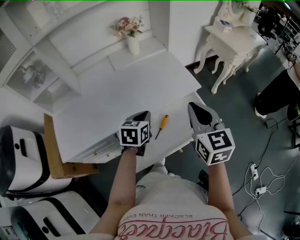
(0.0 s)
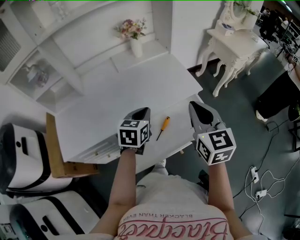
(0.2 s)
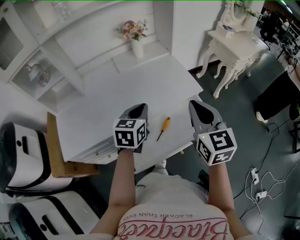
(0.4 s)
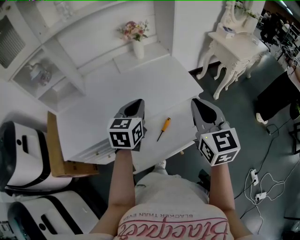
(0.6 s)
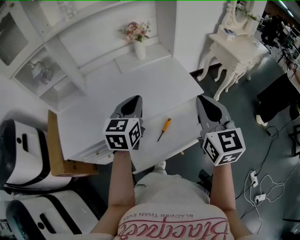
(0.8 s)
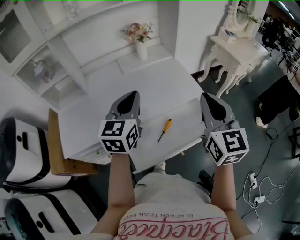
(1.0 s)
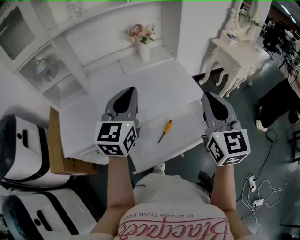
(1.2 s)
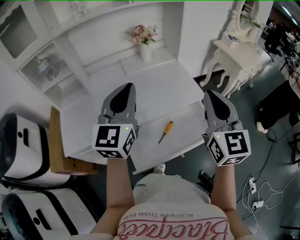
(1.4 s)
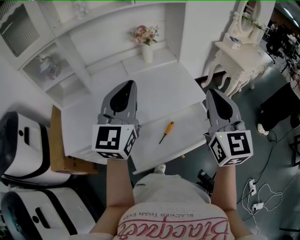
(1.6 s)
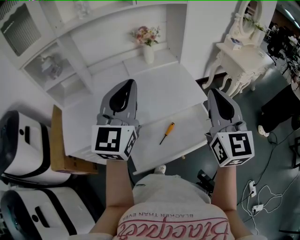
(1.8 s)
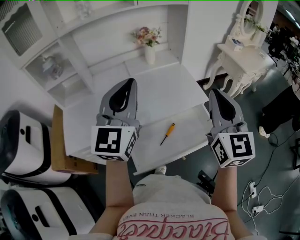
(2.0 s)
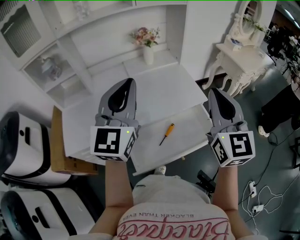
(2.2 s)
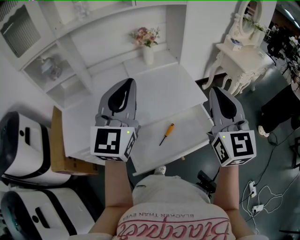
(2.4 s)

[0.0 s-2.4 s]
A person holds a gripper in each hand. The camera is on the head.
0.0 to 1.2 s: The left gripper goes some 20 cm upward, and tips its fingers upward by some 30 degrees. The right gripper goes about 10 cm upward.
1.2 to 2.4 s: The left gripper goes roughly 5 cm upward.

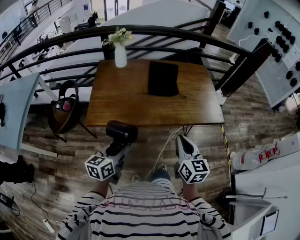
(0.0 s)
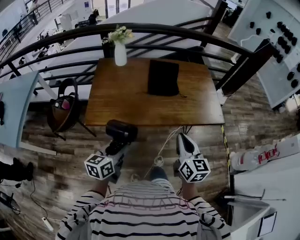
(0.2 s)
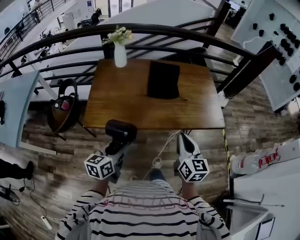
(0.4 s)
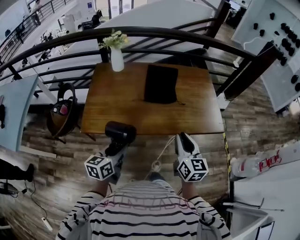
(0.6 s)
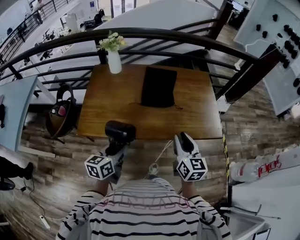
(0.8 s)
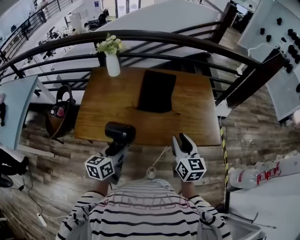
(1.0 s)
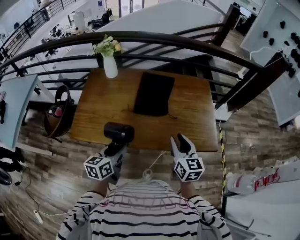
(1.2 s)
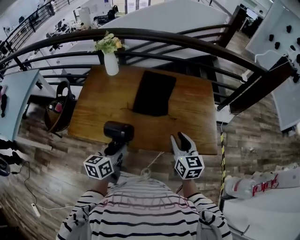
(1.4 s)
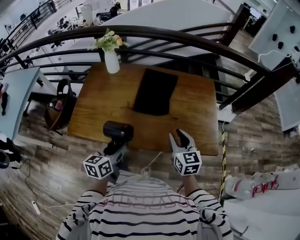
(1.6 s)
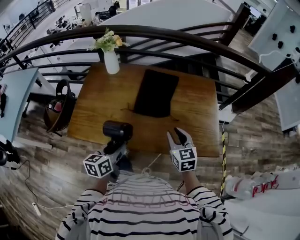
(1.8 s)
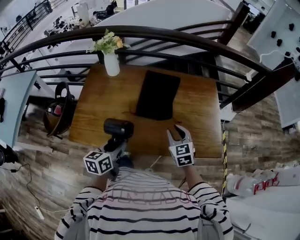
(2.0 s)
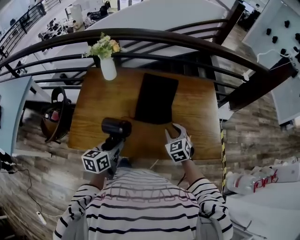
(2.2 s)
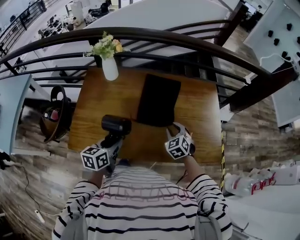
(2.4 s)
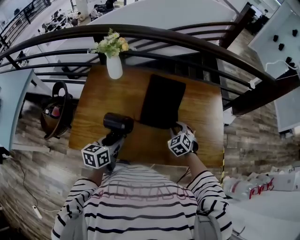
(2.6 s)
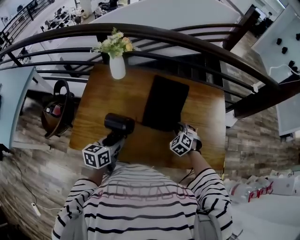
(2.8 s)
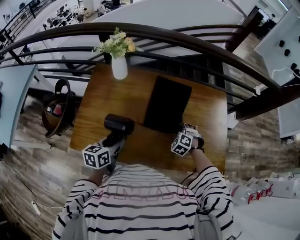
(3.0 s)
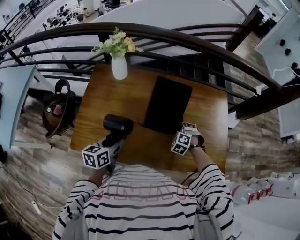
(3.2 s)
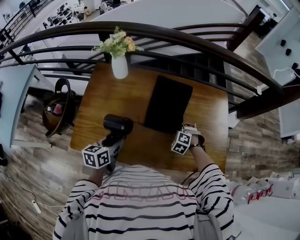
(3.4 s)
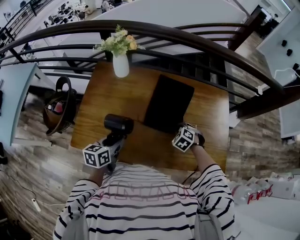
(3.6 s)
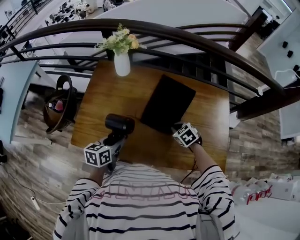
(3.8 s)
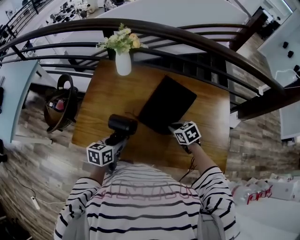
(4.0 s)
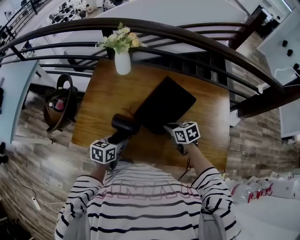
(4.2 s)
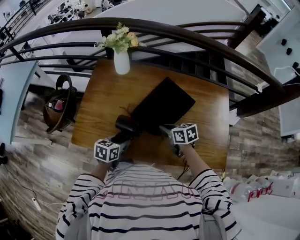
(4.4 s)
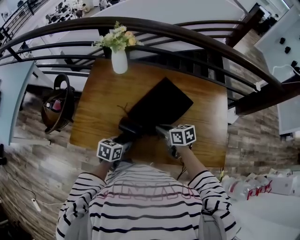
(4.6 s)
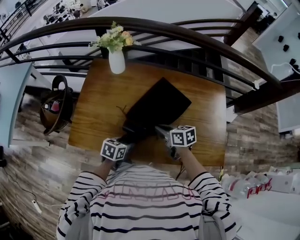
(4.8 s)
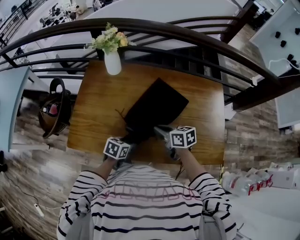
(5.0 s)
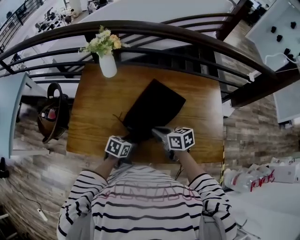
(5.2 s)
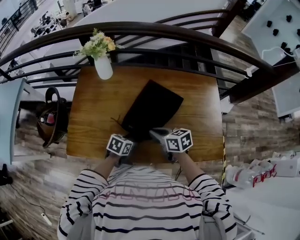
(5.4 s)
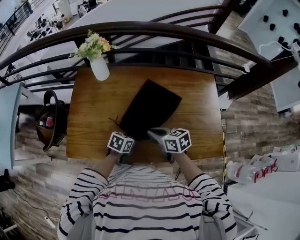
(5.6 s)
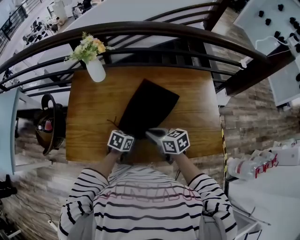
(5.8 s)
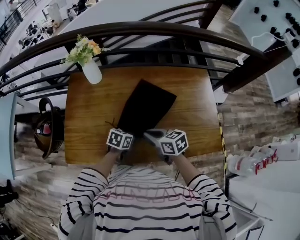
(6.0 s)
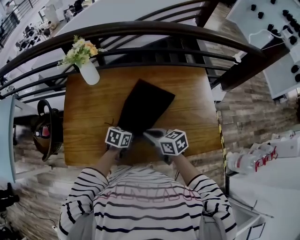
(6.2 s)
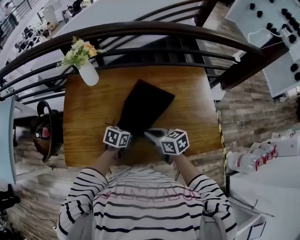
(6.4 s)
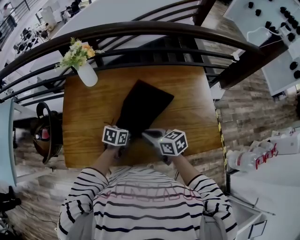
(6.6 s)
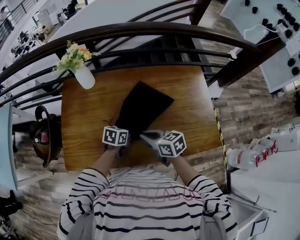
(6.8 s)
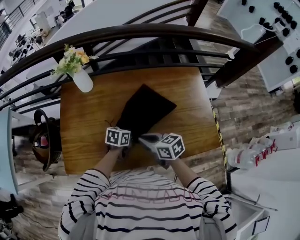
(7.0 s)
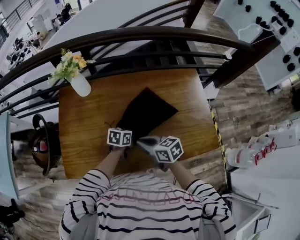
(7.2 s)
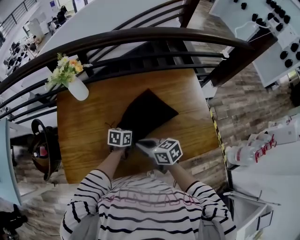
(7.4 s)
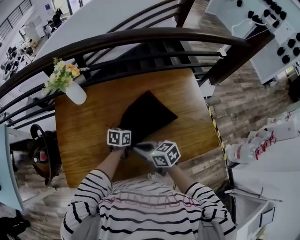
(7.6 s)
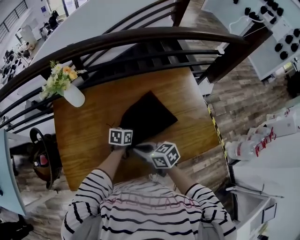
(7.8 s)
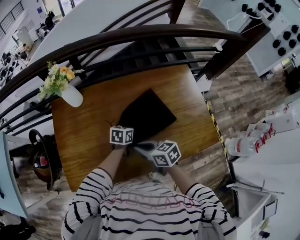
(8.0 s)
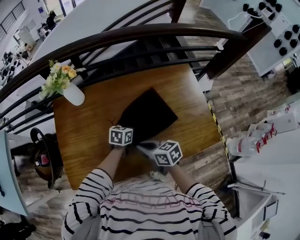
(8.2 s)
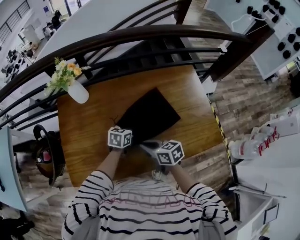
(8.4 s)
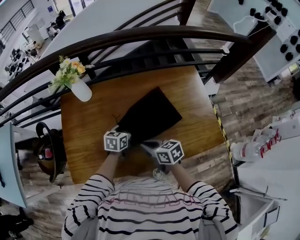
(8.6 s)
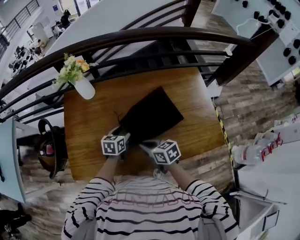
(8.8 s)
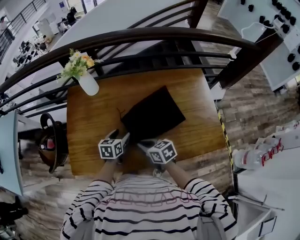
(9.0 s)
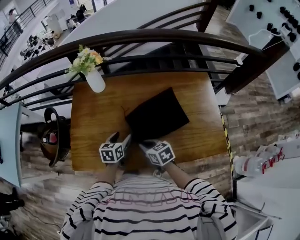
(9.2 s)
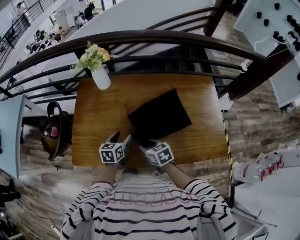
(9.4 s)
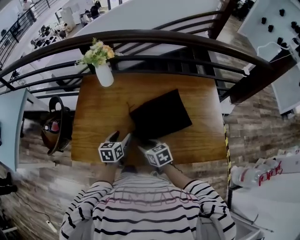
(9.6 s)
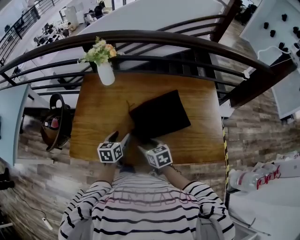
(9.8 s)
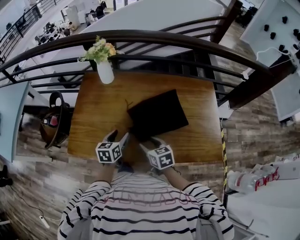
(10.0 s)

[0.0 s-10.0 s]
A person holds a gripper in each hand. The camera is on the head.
0.0 to 1.4 s: The two grippers go some 30 cm forward and to the right. The right gripper opens its fingers.
1.4 to 2.8 s: The left gripper is displaced forward and to the left by roughly 20 cm. Meanwhile the right gripper moves forward and downward, some 25 cm, and twists roughly 50 degrees counterclockwise, seen from behind.
2.8 to 4.2 s: The left gripper moves downward, approximately 5 cm. Meanwhile the right gripper shifts by approximately 10 cm, changes its angle by about 60 degrees, and closes its fingers.
4.2 to 5.8 s: The left gripper moves to the right and downward, some 15 cm, and swivels some 30 degrees. The right gripper is displaced upward by some 5 cm.
5.8 to 7.2 s: The left gripper shifts about 10 cm forward.
7.2 to 8.6 s: The left gripper moves about 5 cm, and opens up.
8.6 to 10.0 s: The right gripper is displaced backward by roughly 5 cm, and opens its fingers. The left gripper travels to the left and backward by approximately 15 cm, and changes its angle by about 30 degrees.

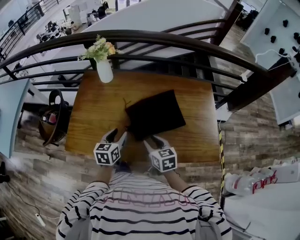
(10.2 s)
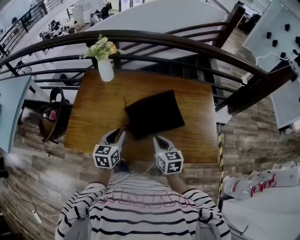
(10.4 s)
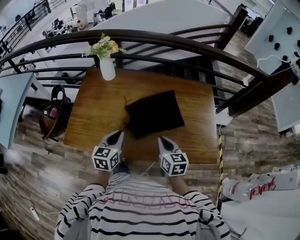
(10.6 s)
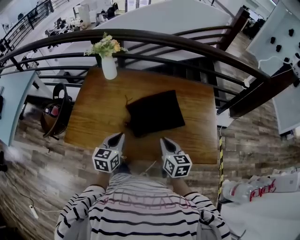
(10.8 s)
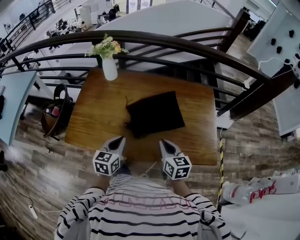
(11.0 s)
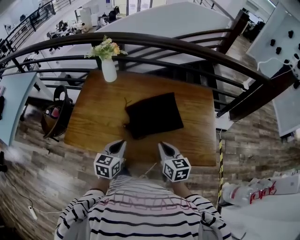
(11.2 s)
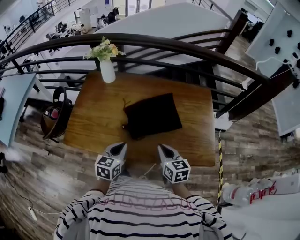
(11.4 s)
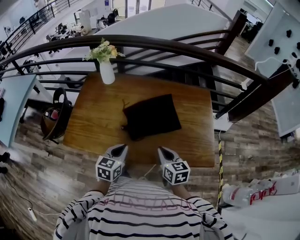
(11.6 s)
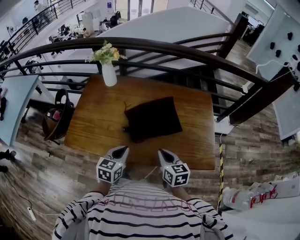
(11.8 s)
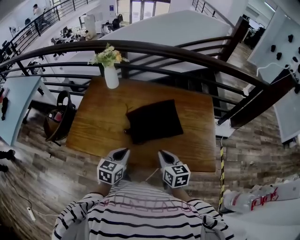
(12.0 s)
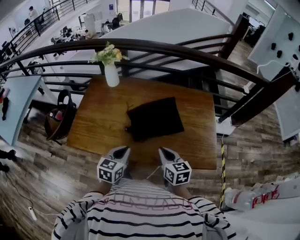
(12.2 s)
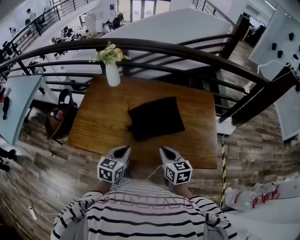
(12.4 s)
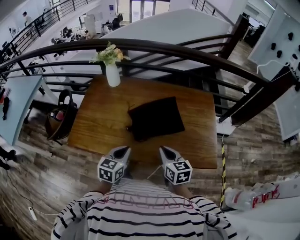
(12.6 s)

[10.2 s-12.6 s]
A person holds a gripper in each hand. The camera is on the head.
10.2 to 11.4 s: The right gripper shifts approximately 10 cm to the right and backward, and closes, while the left gripper moves backward and to the right, roughly 10 cm, and closes up.
11.4 to 12.6 s: The grippers make only small movements.

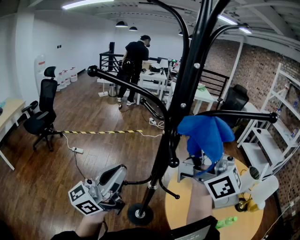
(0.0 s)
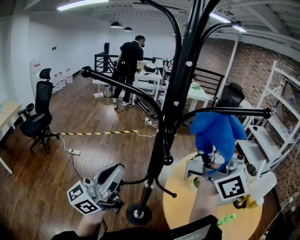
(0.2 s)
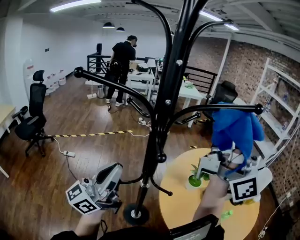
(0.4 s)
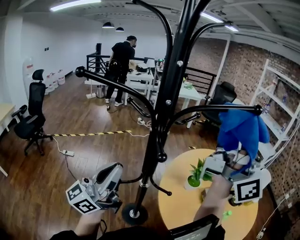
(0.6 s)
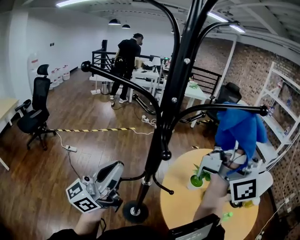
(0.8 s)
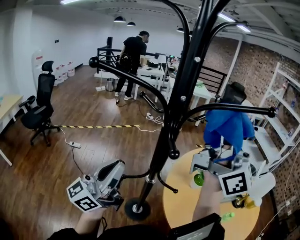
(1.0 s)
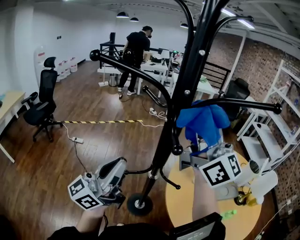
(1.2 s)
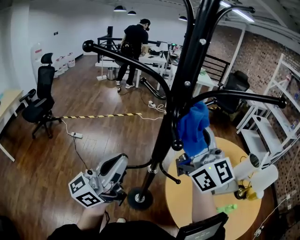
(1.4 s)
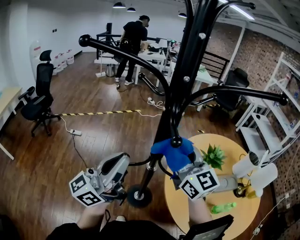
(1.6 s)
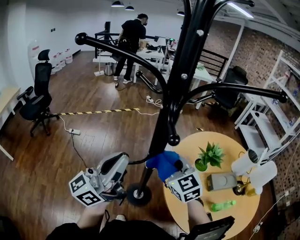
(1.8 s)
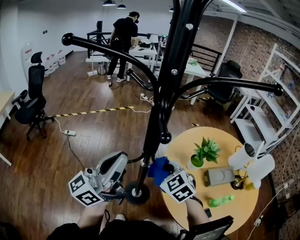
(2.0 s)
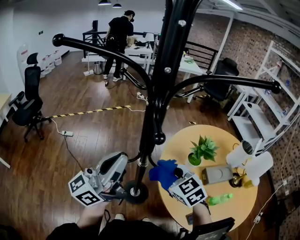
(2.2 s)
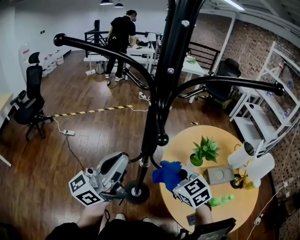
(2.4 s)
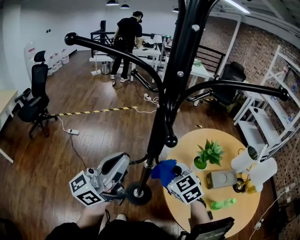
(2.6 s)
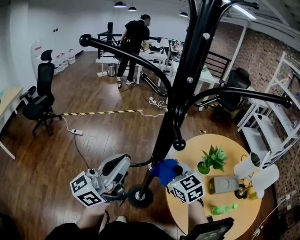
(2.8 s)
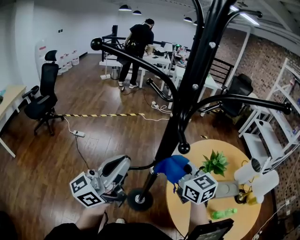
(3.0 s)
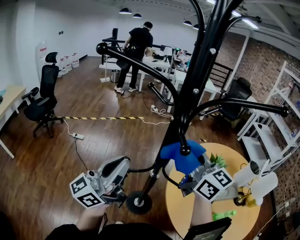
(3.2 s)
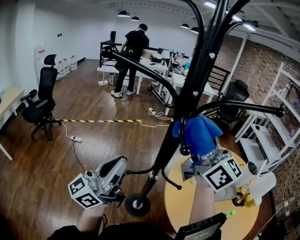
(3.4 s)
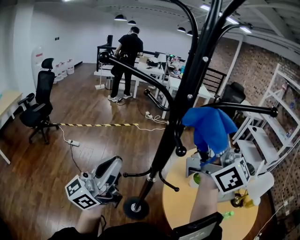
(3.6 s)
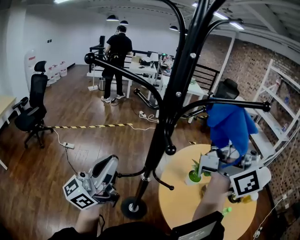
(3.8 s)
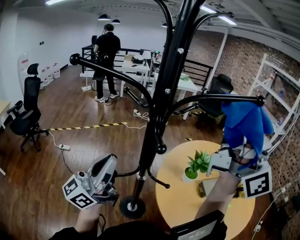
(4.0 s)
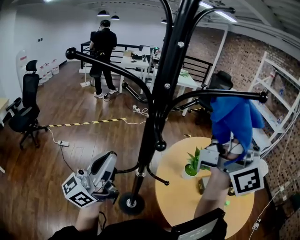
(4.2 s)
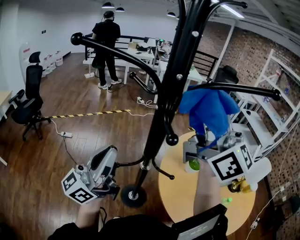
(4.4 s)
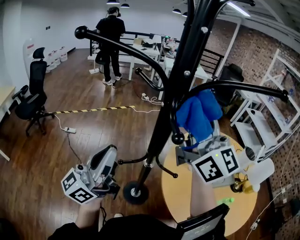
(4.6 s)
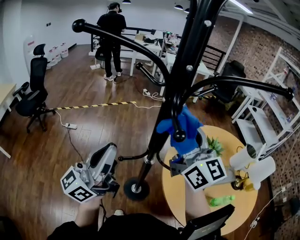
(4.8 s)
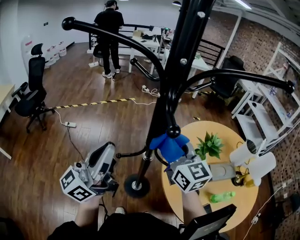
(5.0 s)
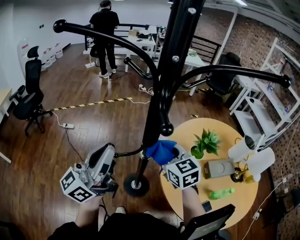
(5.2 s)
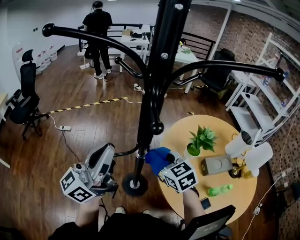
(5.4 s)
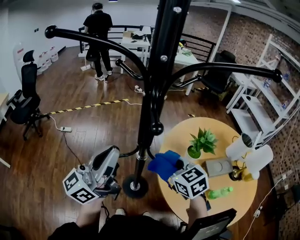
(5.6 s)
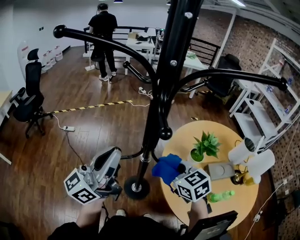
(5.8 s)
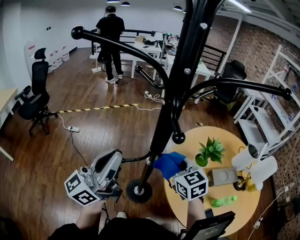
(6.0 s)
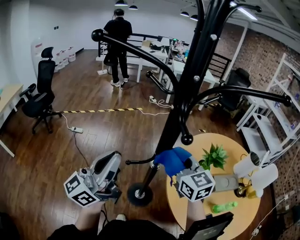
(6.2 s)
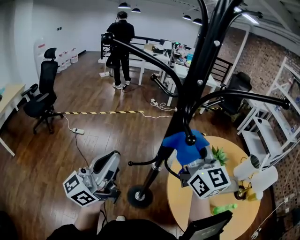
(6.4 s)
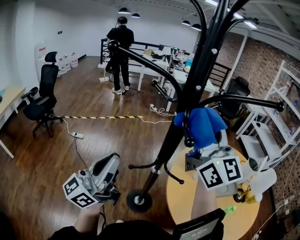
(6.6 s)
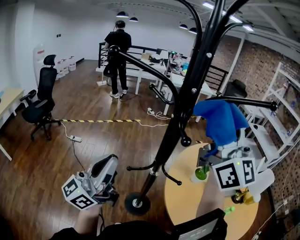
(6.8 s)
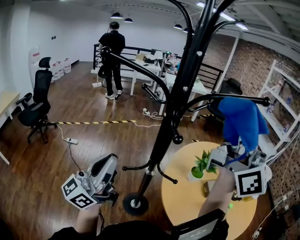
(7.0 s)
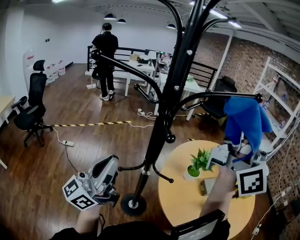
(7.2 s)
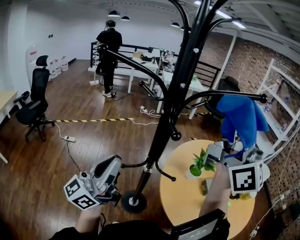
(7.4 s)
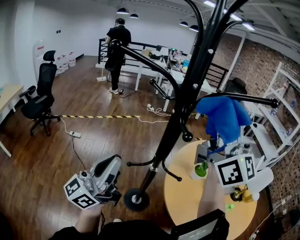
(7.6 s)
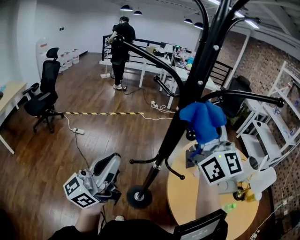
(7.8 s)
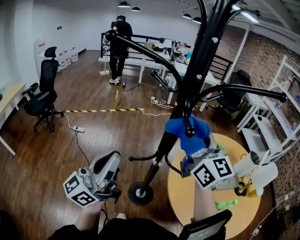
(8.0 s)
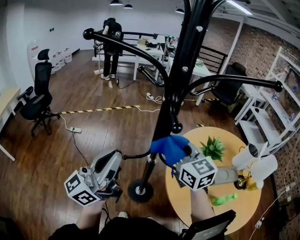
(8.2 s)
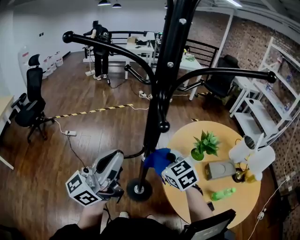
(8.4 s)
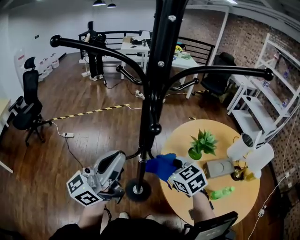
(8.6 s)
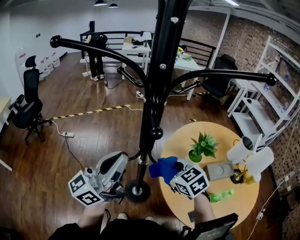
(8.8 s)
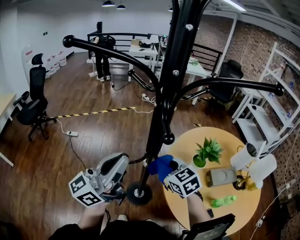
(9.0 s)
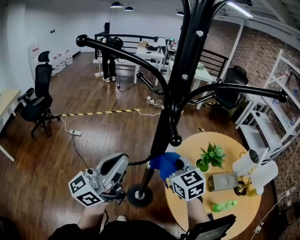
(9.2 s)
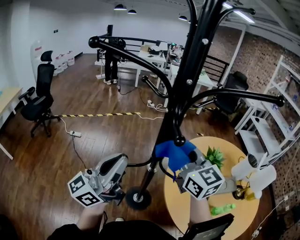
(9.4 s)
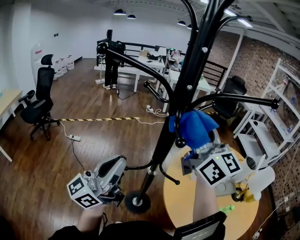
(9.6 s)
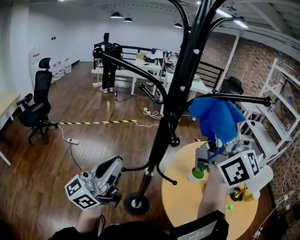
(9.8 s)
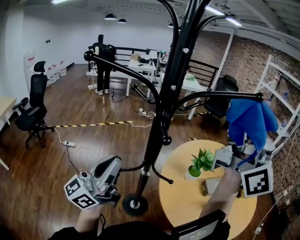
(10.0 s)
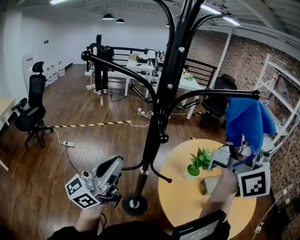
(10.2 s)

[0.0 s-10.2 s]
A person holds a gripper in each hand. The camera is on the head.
0.0 to 1.4 s: The right gripper travels downward by roughly 10 cm, and changes its angle by about 20 degrees.
1.4 to 3.0 s: The right gripper is displaced downward by some 20 cm, and points its fingers some 40 degrees further downward.
3.0 to 4.4 s: The right gripper travels upward by approximately 30 cm, and tilts its fingers some 50 degrees upward.
4.4 to 5.8 s: The right gripper goes some 35 cm downward, and angles its fingers downward, by approximately 70 degrees.
5.8 to 7.2 s: The right gripper shifts roughly 40 cm upward, and tilts its fingers about 80 degrees upward. The left gripper changes place by about 5 cm.
7.2 to 8.8 s: The left gripper goes some 5 cm to the right. The right gripper travels downward by some 40 cm, and tips its fingers downward by about 90 degrees.
8.8 to 10.2 s: The right gripper shifts about 40 cm upward, and tips its fingers upward by approximately 80 degrees.
